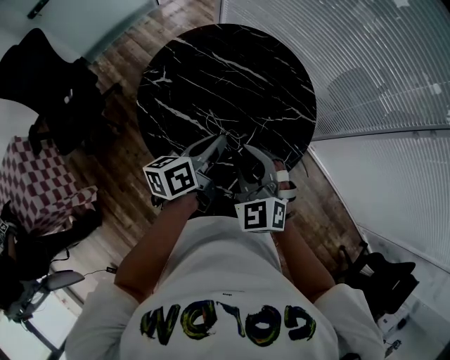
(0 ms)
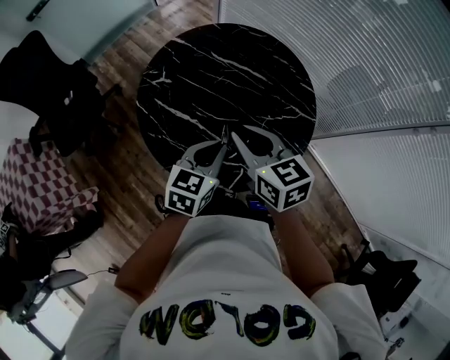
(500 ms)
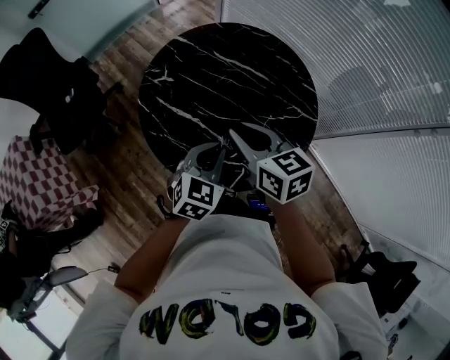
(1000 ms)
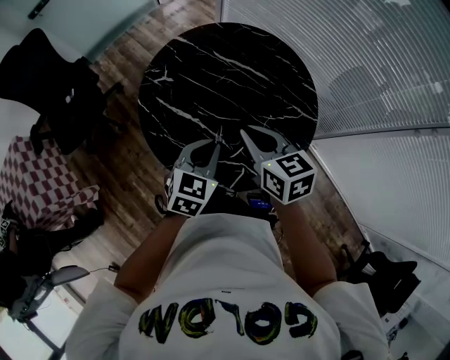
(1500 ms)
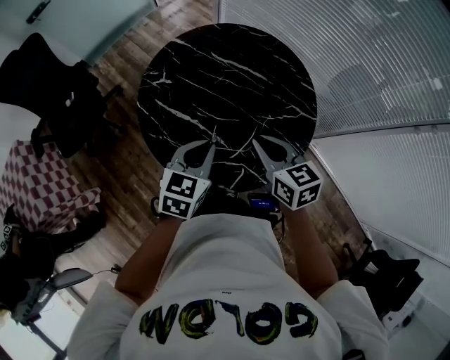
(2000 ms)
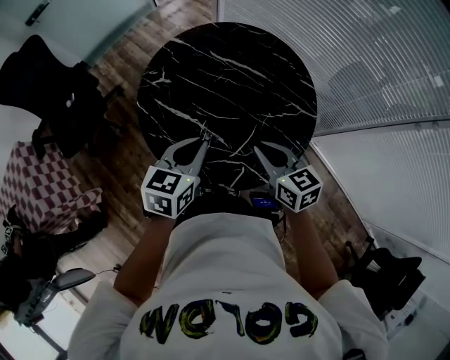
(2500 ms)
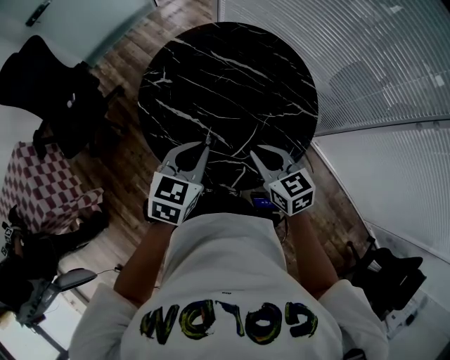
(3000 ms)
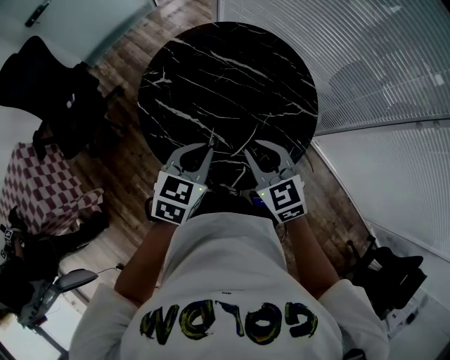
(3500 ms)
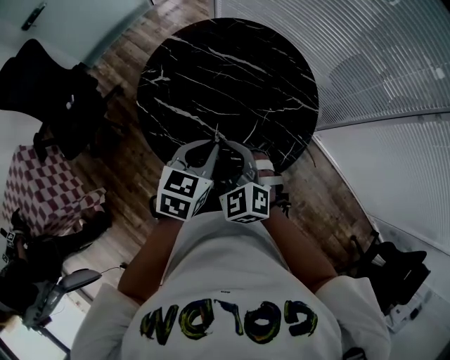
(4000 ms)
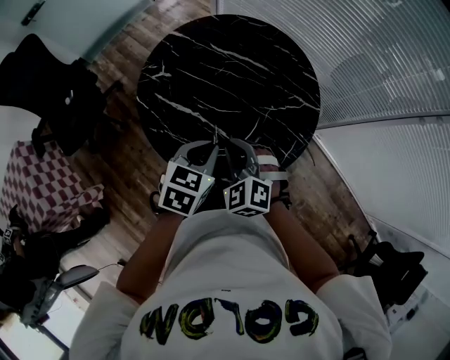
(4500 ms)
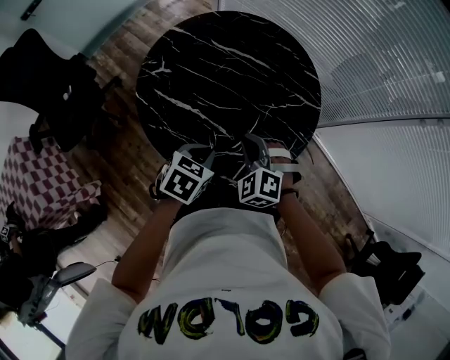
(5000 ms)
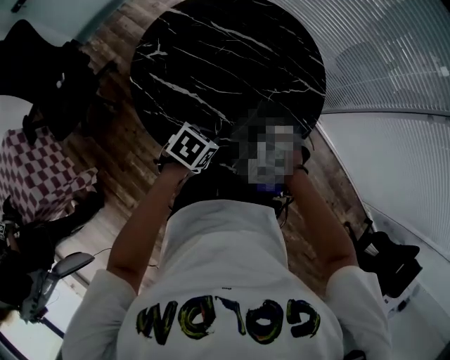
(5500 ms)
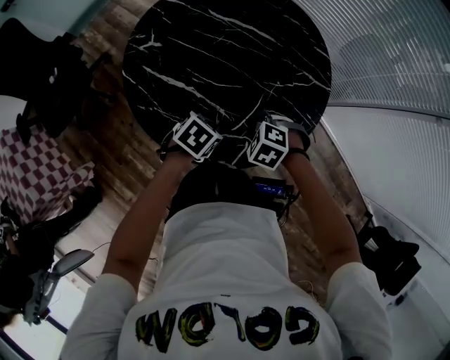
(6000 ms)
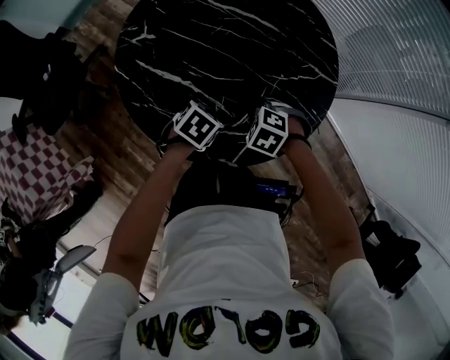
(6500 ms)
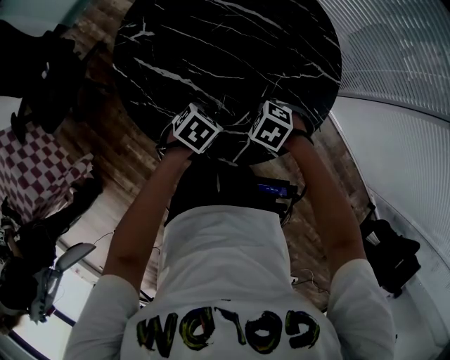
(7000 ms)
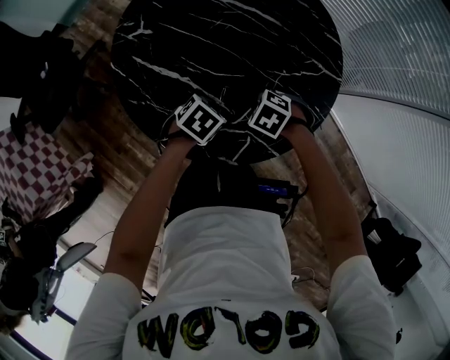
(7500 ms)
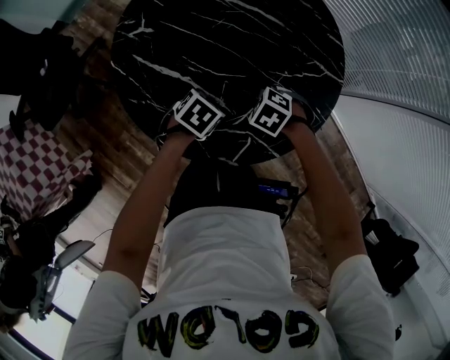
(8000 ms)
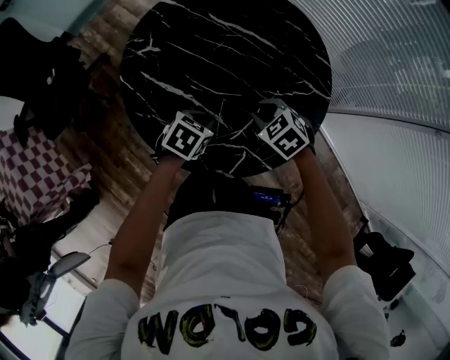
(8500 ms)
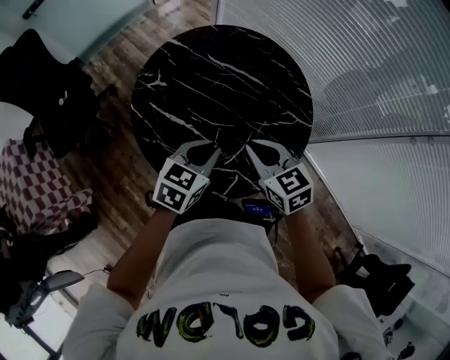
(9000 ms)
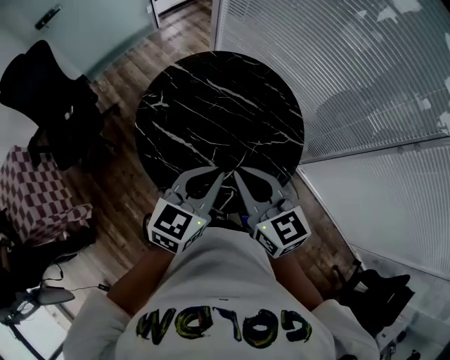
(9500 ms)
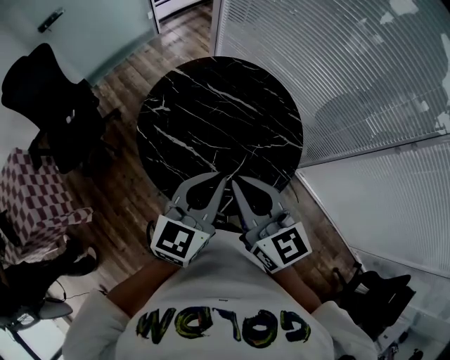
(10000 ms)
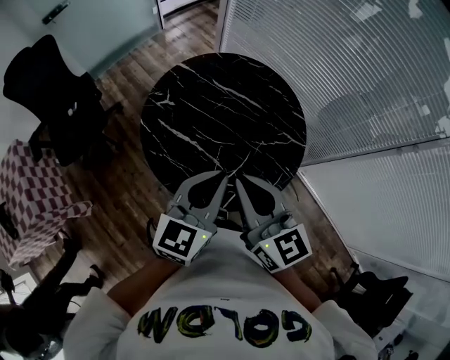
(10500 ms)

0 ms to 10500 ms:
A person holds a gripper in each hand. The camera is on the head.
0 ms to 2000 ms: The right gripper moves about 5 cm, and rotates around the line of its fingers by about 50 degrees, clockwise from behind; the left gripper twists roughly 40 degrees clockwise, seen from behind.
2000 ms to 4000 ms: The right gripper travels to the left by some 10 cm, and twists about 50 degrees counterclockwise, seen from behind.
4000 ms to 6500 ms: Both grippers travel together downward, about 25 cm. The left gripper turns by some 40 degrees; the right gripper tips its fingers downward by some 40 degrees.
6500 ms to 8500 ms: The right gripper moves upward, roughly 5 cm, and swivels about 20 degrees.
8500 ms to 10500 ms: The grippers both shift upward by about 35 cm. The left gripper points its fingers approximately 50 degrees further upward; the right gripper tips its fingers upward by roughly 50 degrees.

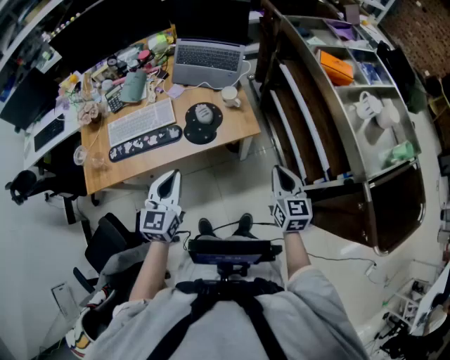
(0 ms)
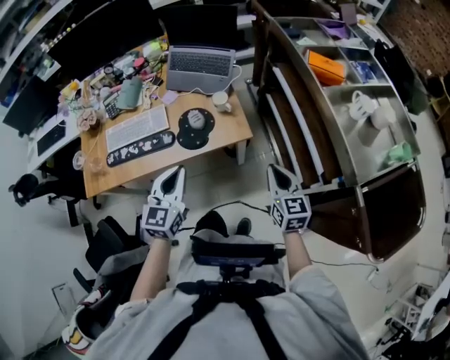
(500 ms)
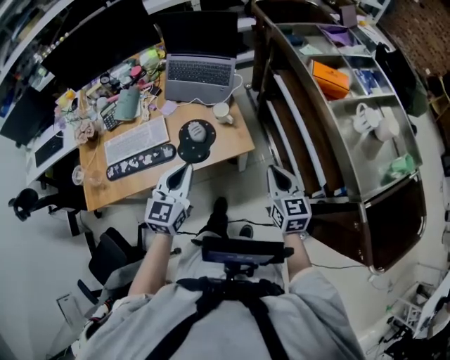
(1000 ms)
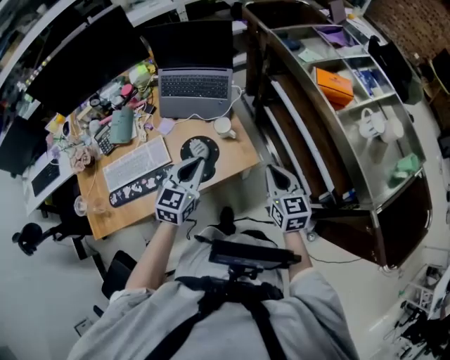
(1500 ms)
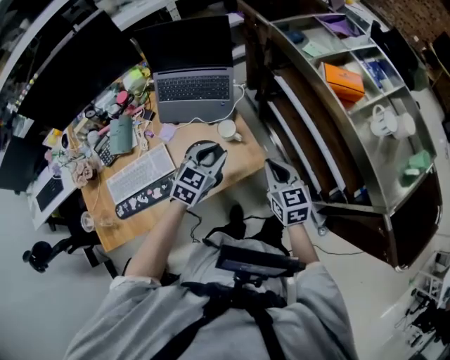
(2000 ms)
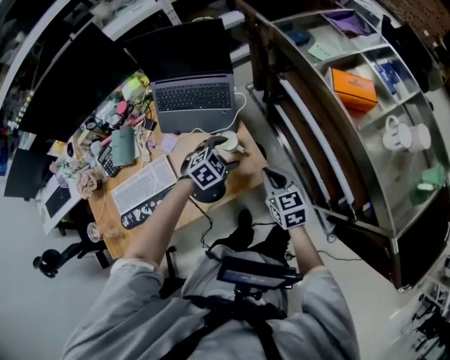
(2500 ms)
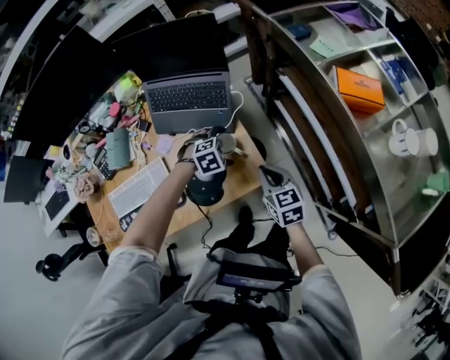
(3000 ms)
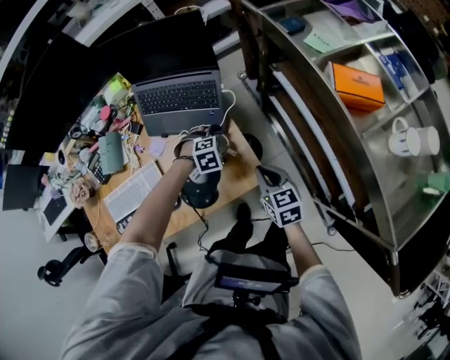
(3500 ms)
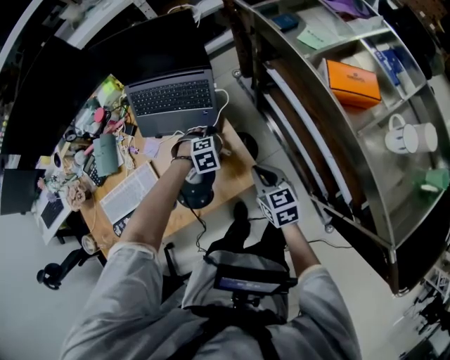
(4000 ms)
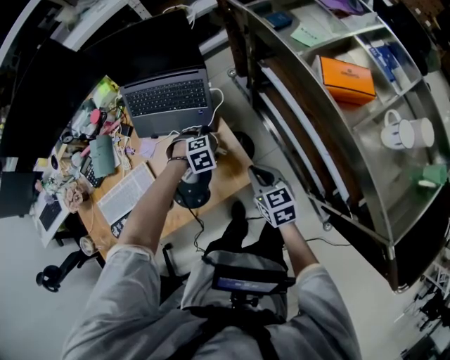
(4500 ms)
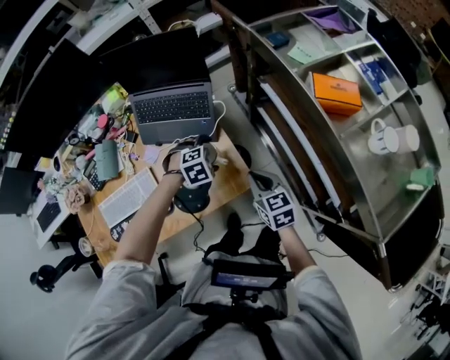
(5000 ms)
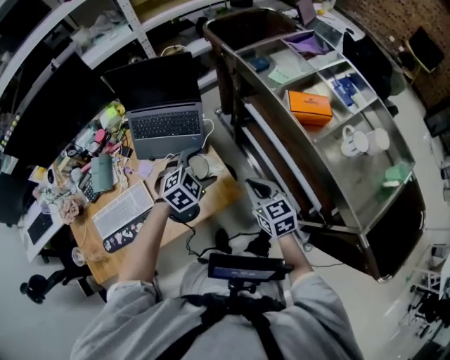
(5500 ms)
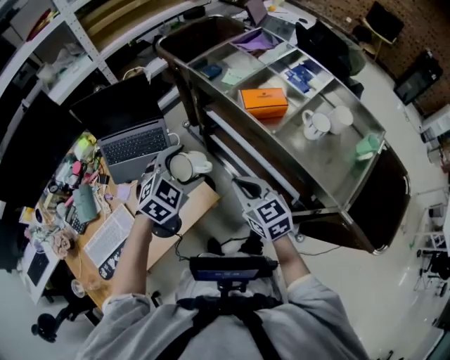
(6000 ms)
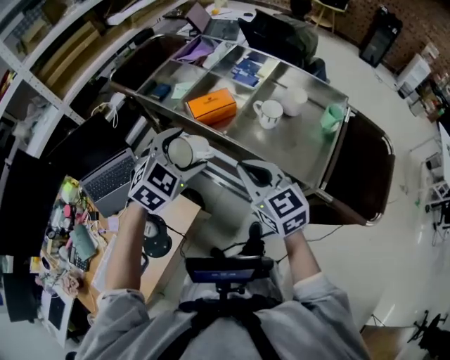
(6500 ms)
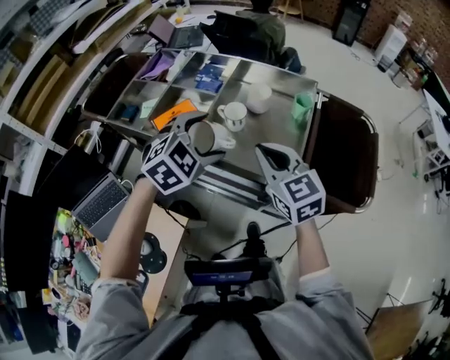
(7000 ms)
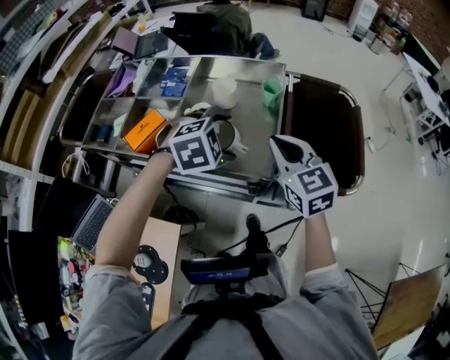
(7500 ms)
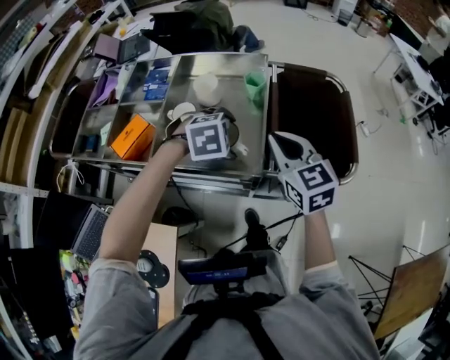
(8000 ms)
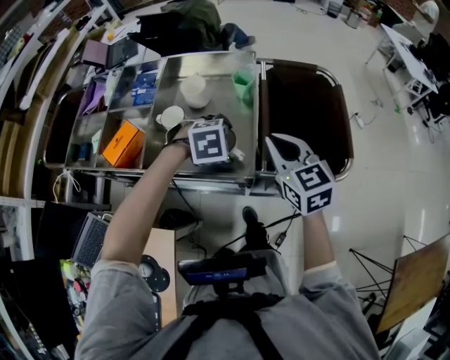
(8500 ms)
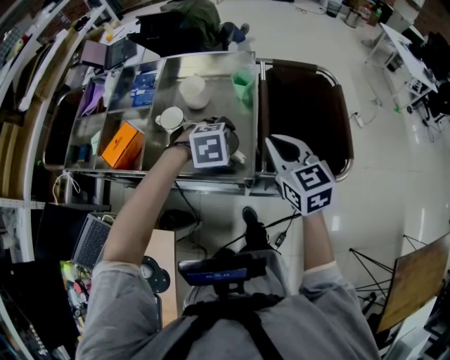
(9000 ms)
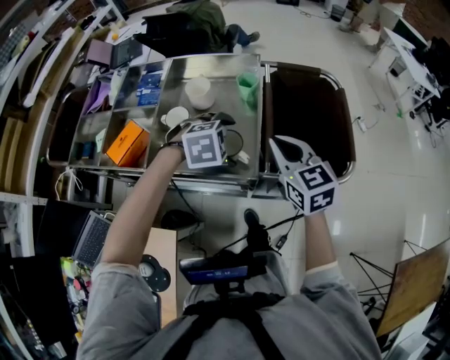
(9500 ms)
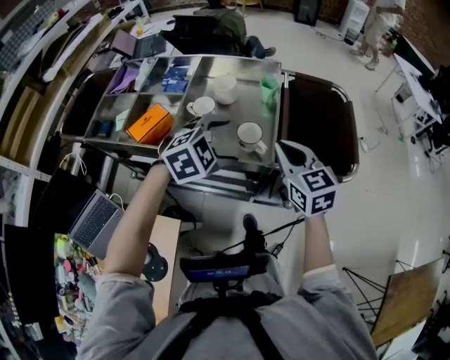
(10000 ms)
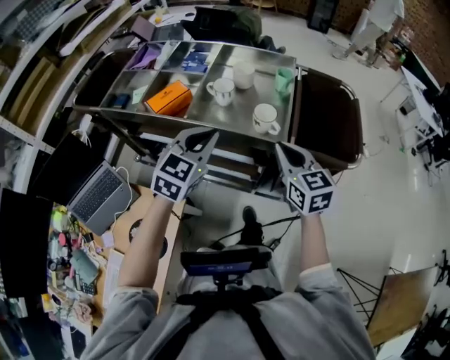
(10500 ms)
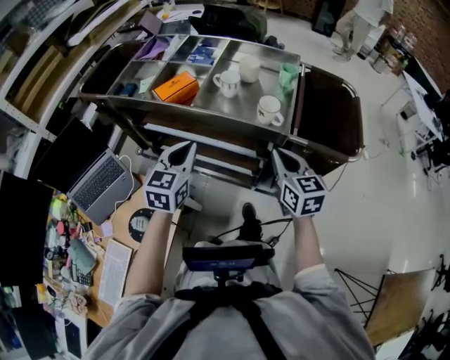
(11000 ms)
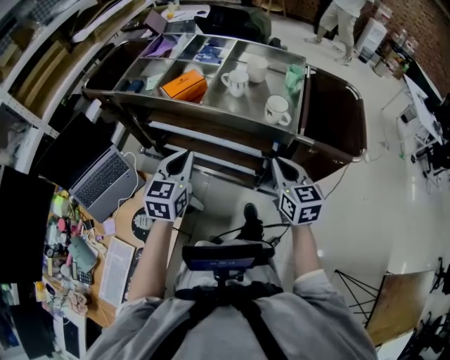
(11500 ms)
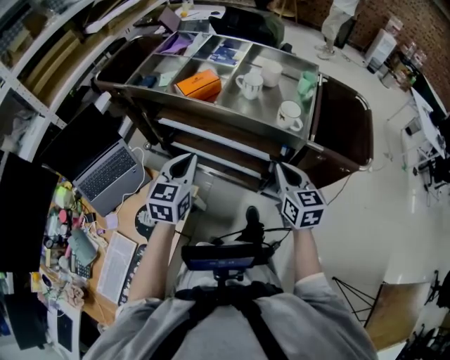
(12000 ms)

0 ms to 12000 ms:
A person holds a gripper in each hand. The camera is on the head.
0 ms to 2000 ms: The left gripper moves forward, approximately 30 cm, and turns by roughly 40 degrees. The right gripper heads forward, covering approximately 20 cm.
2000 ms to 4000 ms: The left gripper goes some 20 cm downward, angles its fingers downward, by roughly 50 degrees, and opens. The right gripper heads downward, covering approximately 10 cm.
4000 ms to 6000 ms: The right gripper goes some 20 cm upward, while the left gripper is displaced upward by some 35 cm, and tips its fingers upward by about 40 degrees.
6000 ms to 8000 ms: The two grippers travel together, roughly 40 cm. The left gripper tips its fingers downward by some 30 degrees; the right gripper rotates approximately 50 degrees.
8000 ms to 10000 ms: The left gripper shifts roughly 10 cm backward and upward, and swivels roughly 20 degrees. The right gripper travels backward by roughly 5 cm.
10000 ms to 12000 ms: The left gripper shifts some 30 cm to the left and backward, changes its angle by some 70 degrees, and closes; the right gripper heads backward, to the left and downward, covering approximately 20 cm.

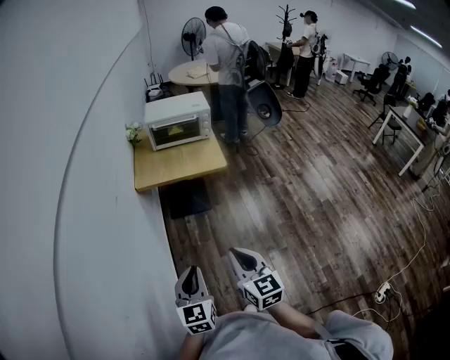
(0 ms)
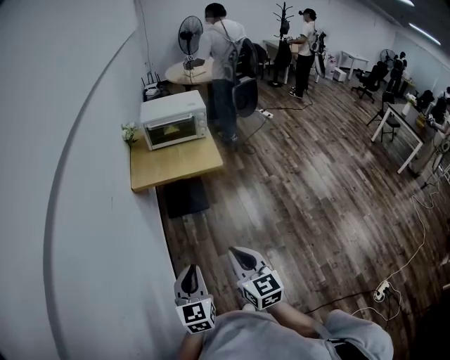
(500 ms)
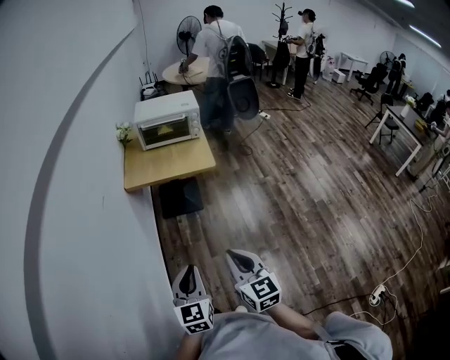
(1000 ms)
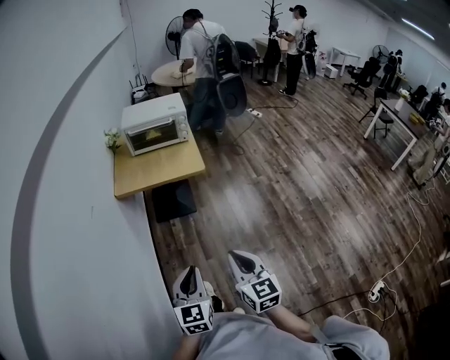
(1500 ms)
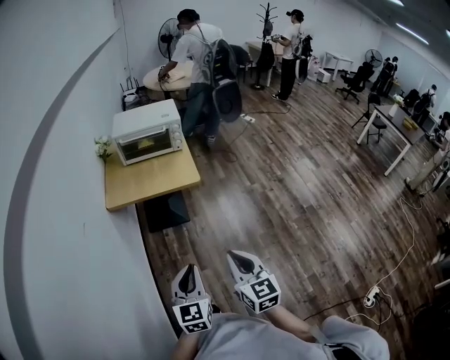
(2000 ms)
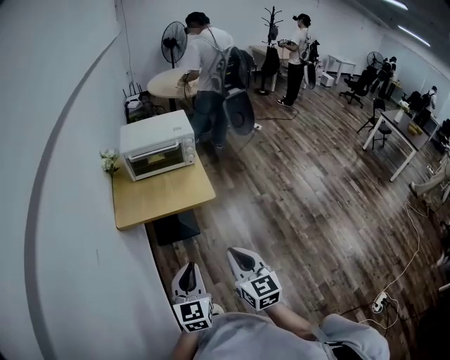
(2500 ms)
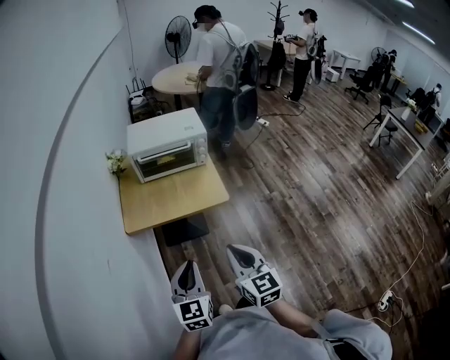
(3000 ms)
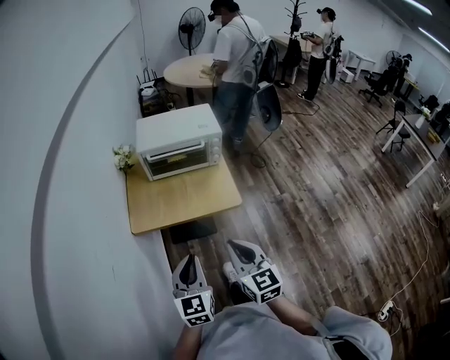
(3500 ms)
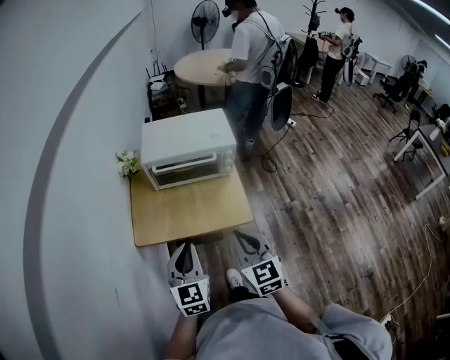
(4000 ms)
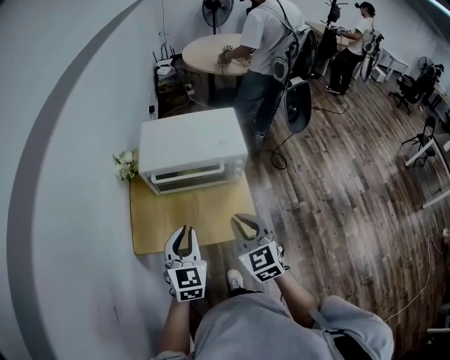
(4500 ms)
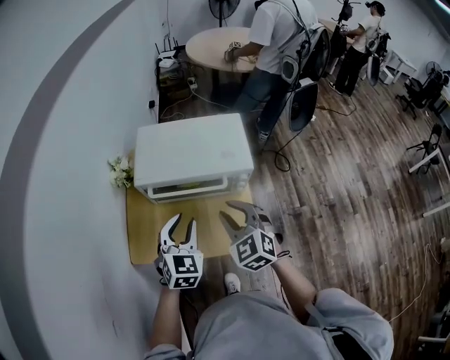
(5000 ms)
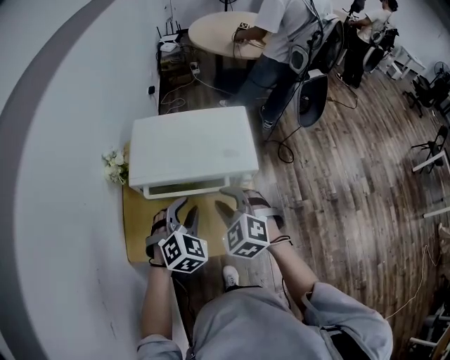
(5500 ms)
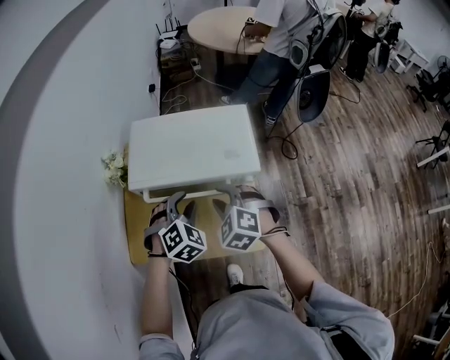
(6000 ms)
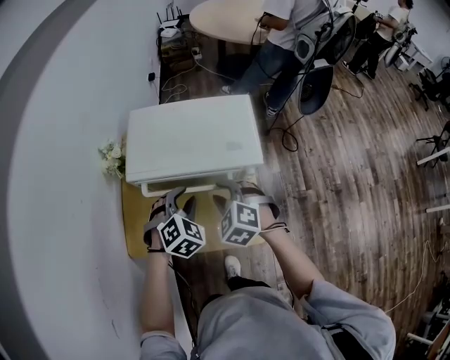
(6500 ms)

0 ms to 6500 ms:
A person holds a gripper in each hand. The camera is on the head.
0 ms to 2000 ms: Both grippers travel together to the right and forward, approximately 15 cm.
2000 ms to 4500 ms: Both grippers are carried forward, roughly 50 cm. The right gripper changes its angle by approximately 20 degrees.
4500 ms to 6500 ms: The grippers both shift forward and downward by some 20 cm. The right gripper changes its angle by some 40 degrees, and opens up. Meanwhile the left gripper rotates about 40 degrees, and opens up.
